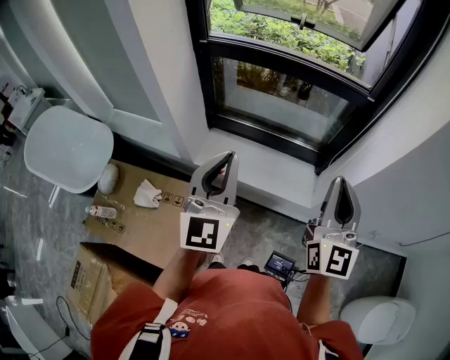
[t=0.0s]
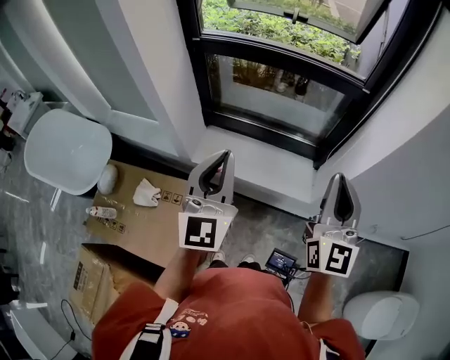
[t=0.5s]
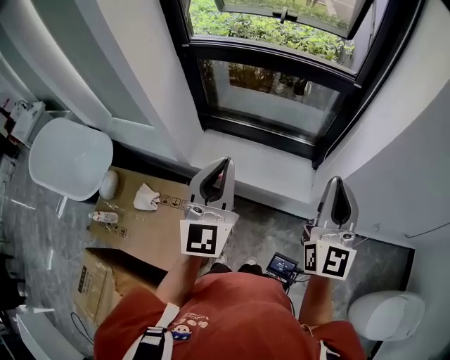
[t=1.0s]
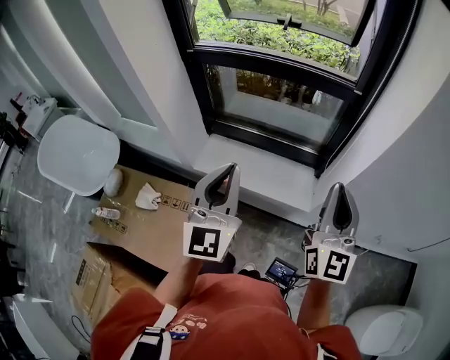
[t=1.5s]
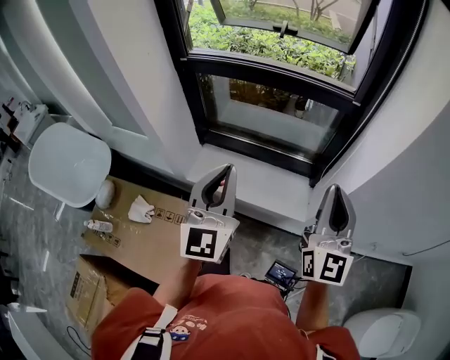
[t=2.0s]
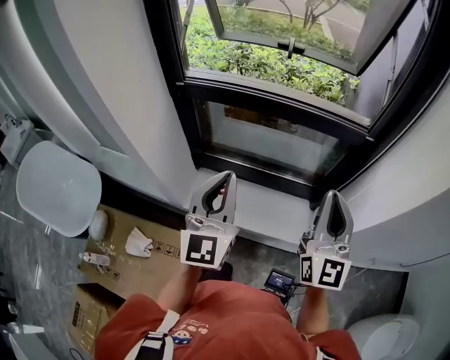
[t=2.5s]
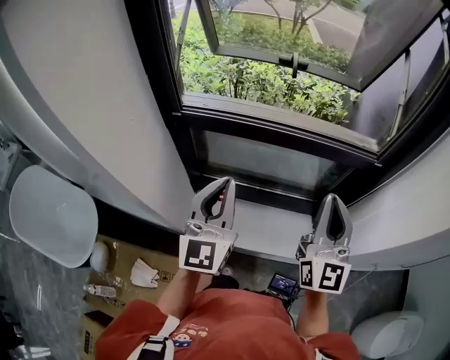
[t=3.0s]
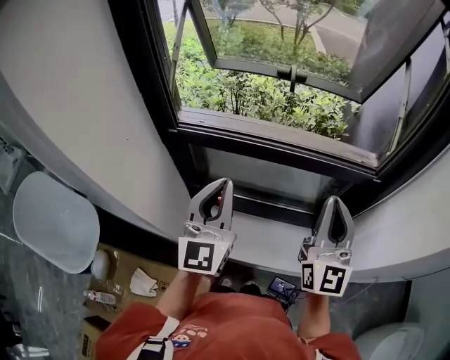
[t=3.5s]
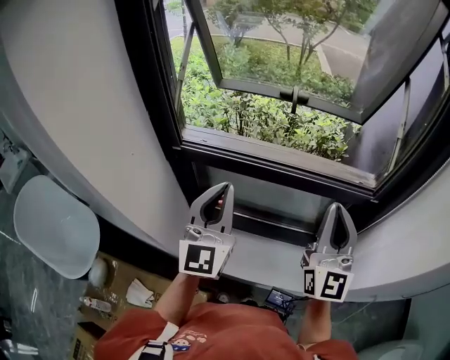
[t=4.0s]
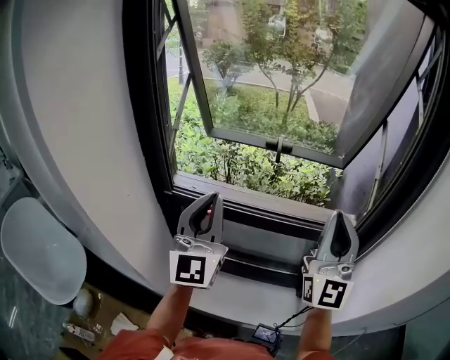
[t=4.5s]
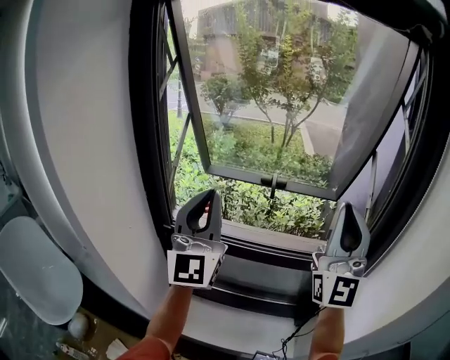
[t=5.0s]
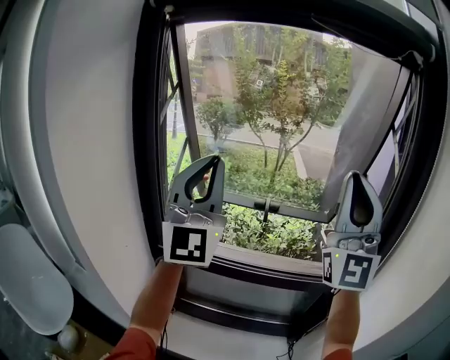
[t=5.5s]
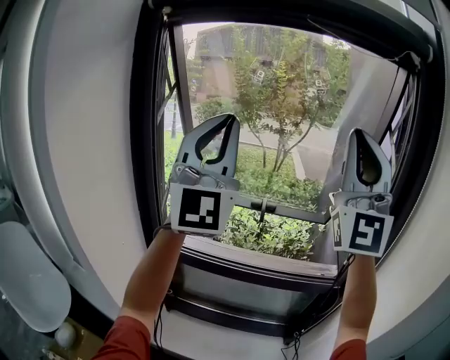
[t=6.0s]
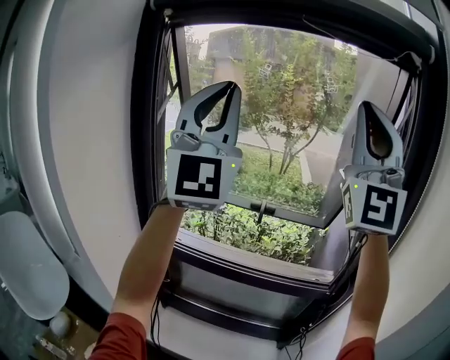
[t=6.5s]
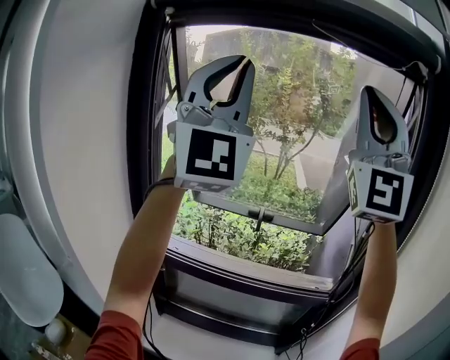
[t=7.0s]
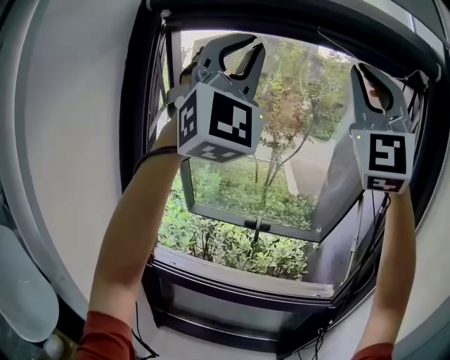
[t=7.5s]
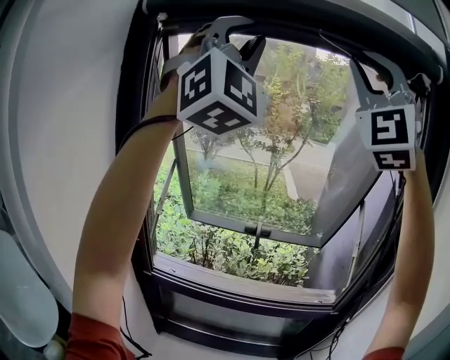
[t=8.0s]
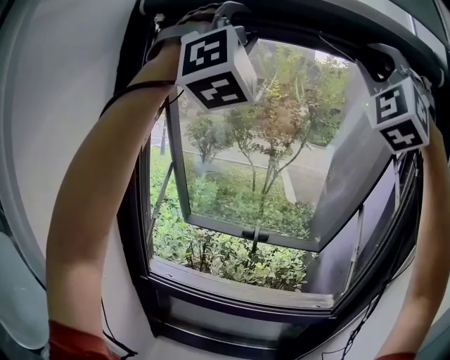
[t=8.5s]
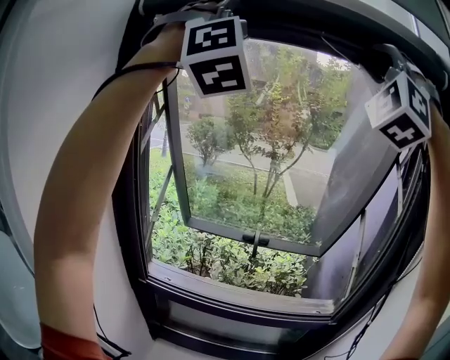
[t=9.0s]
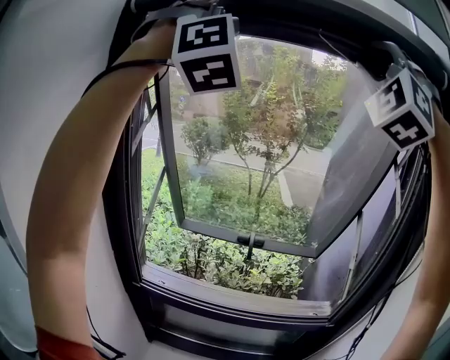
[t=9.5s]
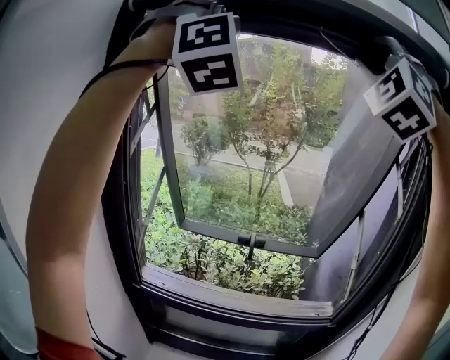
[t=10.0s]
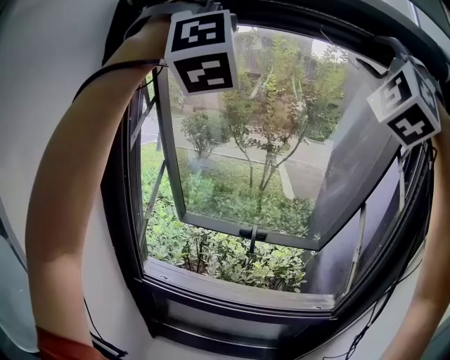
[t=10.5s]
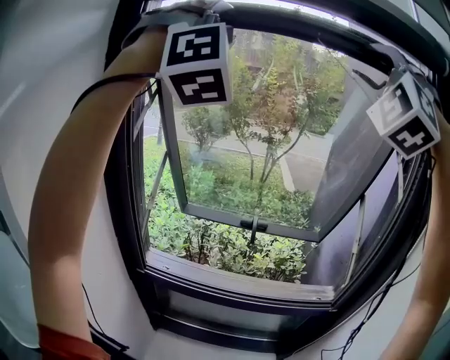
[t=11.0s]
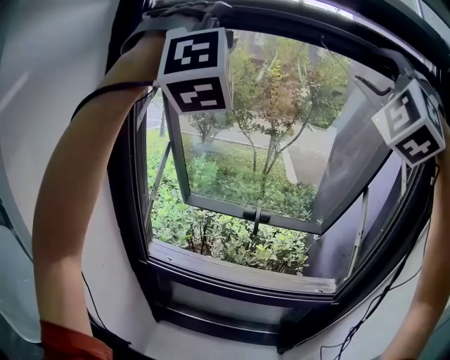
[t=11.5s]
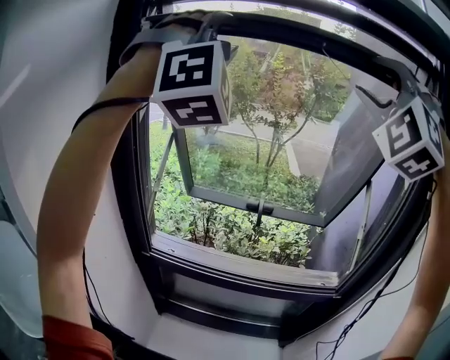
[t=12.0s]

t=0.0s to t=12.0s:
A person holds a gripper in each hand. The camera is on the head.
t=0.0s to t=2.0s: The two grippers go about 5 cm to the right.
t=2.0s to t=4.0s: The two grippers go roughly 30 cm forward and to the left.
t=4.0s to t=6.0s: The grippers both shift upward by roughly 40 cm. The left gripper points its fingers some 30 degrees further upward. The right gripper turns by about 40 degrees.
t=6.0s to t=8.0s: The right gripper moves upward and forward, some 20 cm, and rotates roughly 30 degrees. The left gripper shifts about 20 cm upward, and turns by some 40 degrees.
t=8.0s to t=10.0s: The right gripper changes place by roughly 5 cm, and turns by approximately 30 degrees. The left gripper is displaced forward by some 5 cm, and turns by about 30 degrees.
t=10.0s to t=12.0s: Both grippers travel together downward, roughly 10 cm.

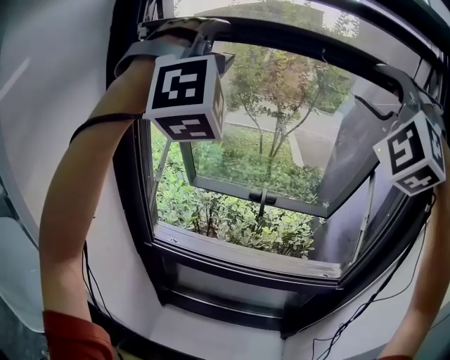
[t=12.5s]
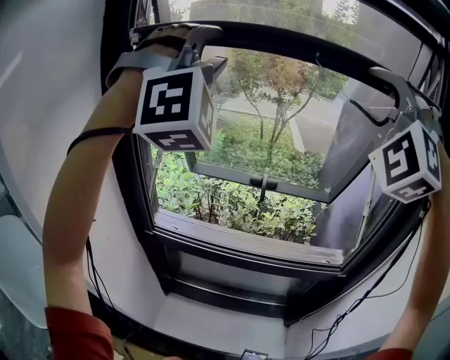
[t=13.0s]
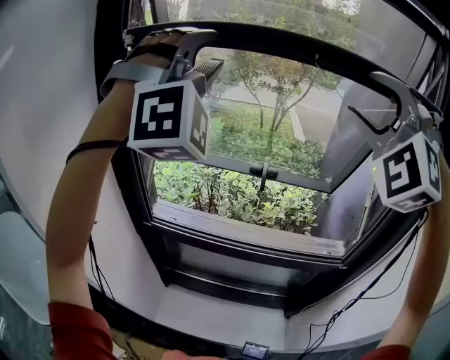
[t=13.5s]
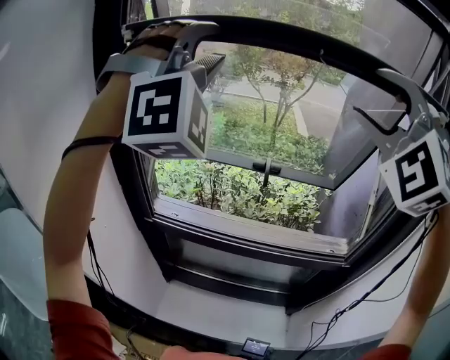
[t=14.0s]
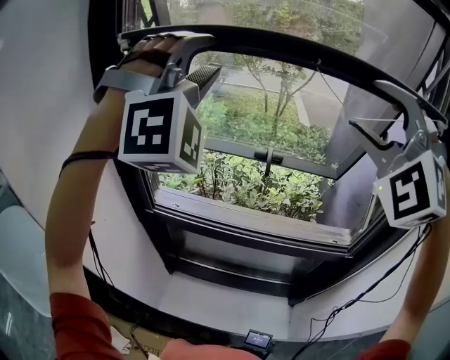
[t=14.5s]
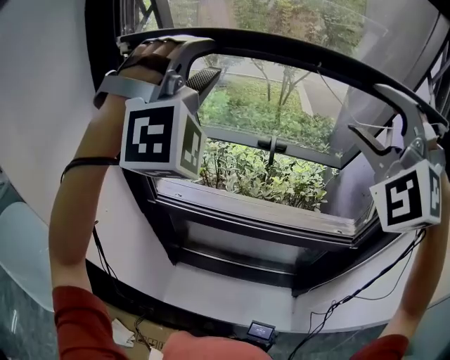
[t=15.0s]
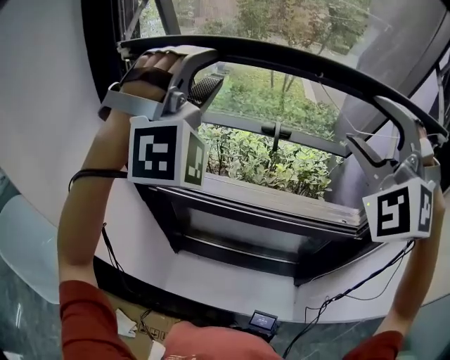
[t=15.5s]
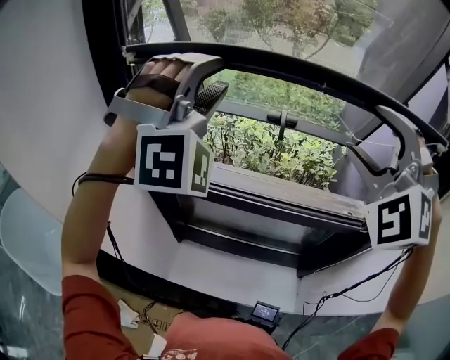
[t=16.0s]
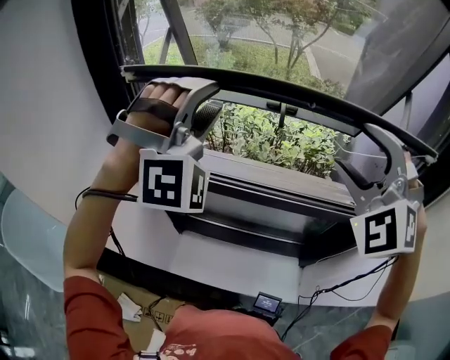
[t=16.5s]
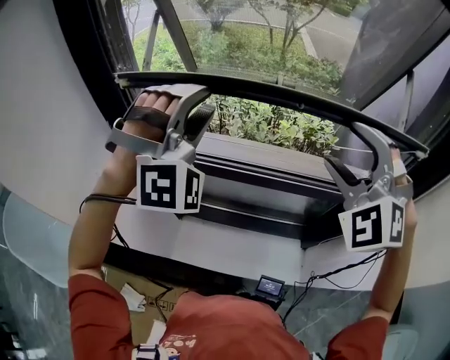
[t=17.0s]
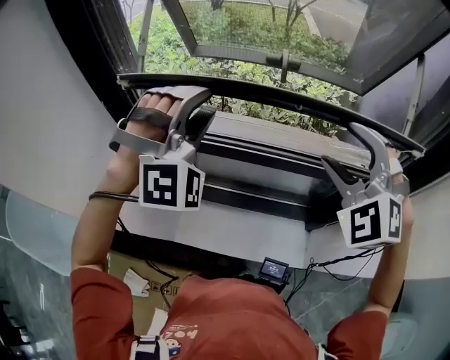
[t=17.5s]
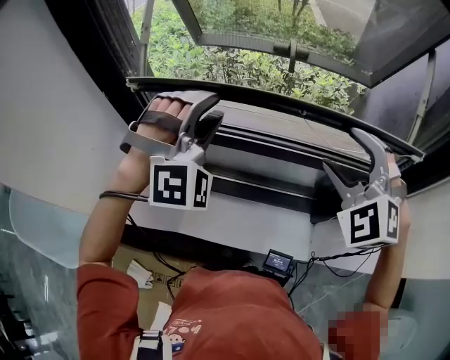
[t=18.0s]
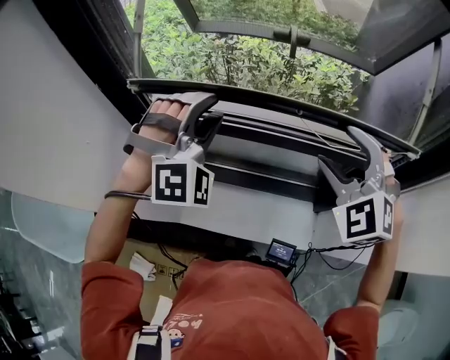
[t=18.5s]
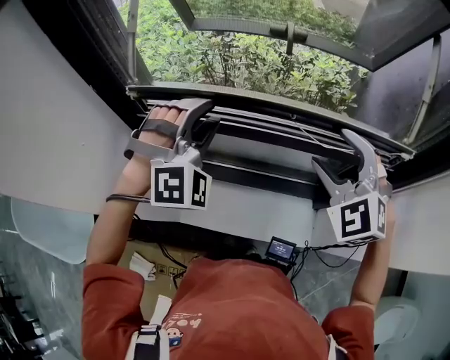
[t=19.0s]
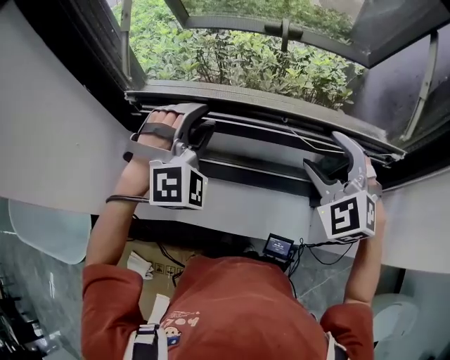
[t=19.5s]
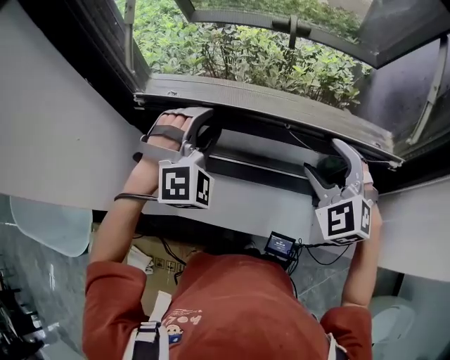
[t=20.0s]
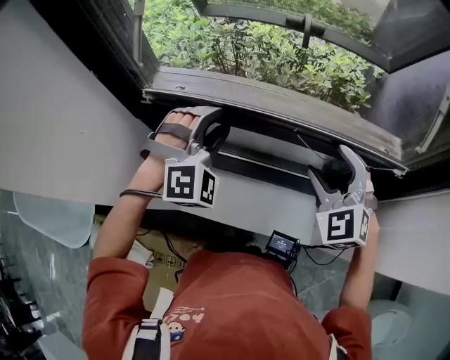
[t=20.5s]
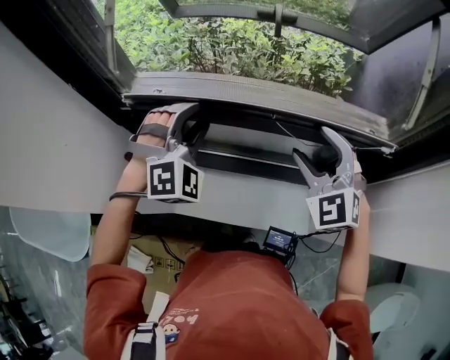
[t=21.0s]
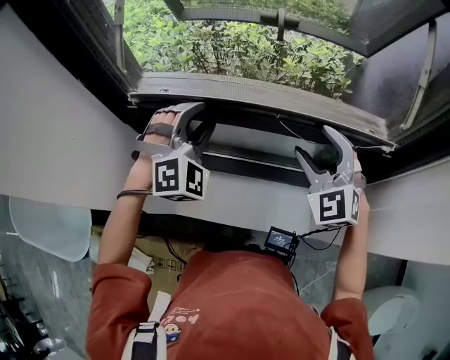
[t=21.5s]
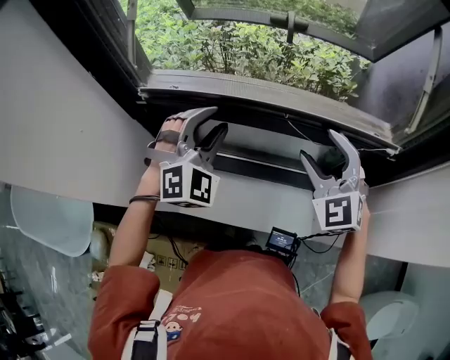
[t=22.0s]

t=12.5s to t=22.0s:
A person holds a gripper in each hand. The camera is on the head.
t=12.5s to t=14.5s: The two grippers go about 10 cm downward.
t=14.5s to t=16.5s: The grippers both shift downward by about 15 cm.
t=16.5s to t=18.0s: The two grippers go about 15 cm downward.
t=18.0s to t=20.0s: The grippers both shift downward by approximately 10 cm.
t=20.0s to t=22.0s: The grippers move only a little.

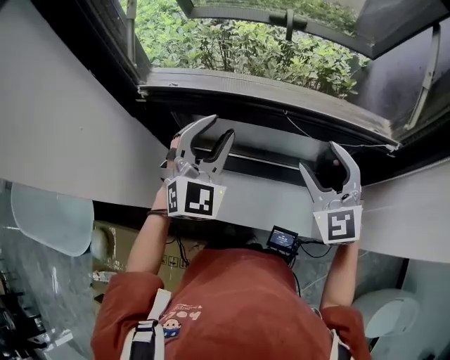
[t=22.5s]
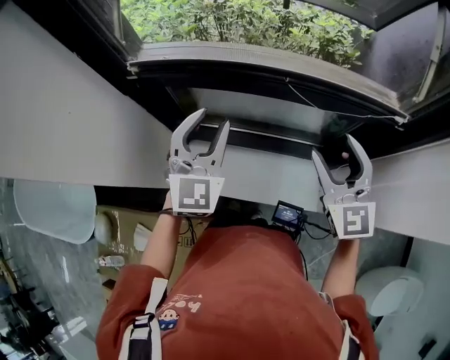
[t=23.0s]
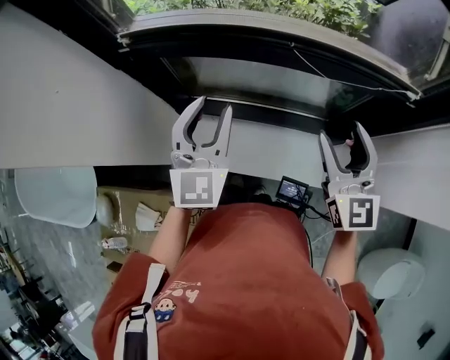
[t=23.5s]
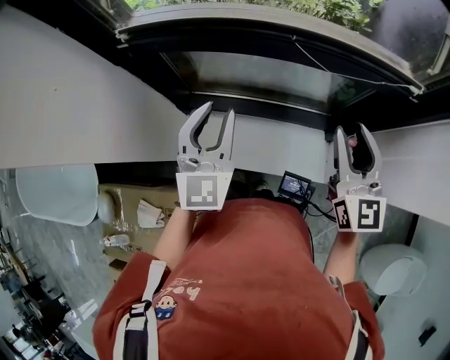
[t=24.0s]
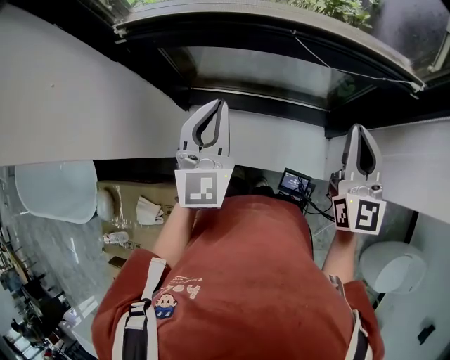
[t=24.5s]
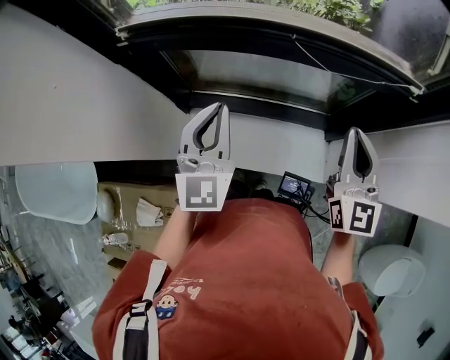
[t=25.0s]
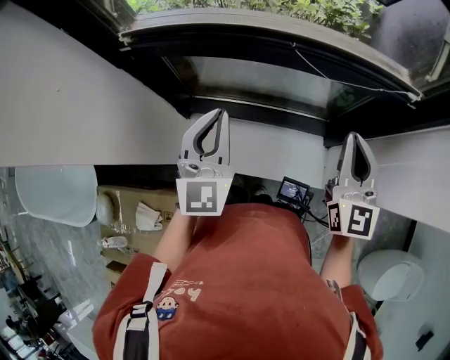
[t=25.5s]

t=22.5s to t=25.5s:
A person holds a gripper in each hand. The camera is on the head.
t=22.5s to t=24.0s: The right gripper is displaced backward and to the right by roughly 10 cm, changes its angle by roughly 30 degrees, and closes, while the left gripper goes approximately 10 cm backward and downward, and changes its angle by approximately 30 degrees.
t=24.0s to t=25.5s: The right gripper closes. The left gripper closes up.

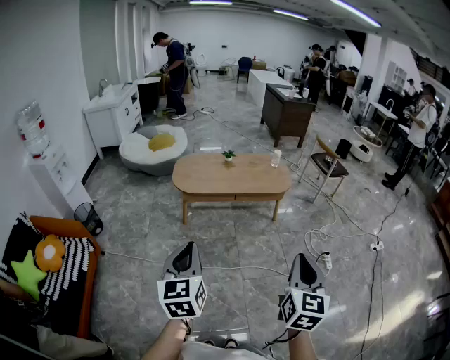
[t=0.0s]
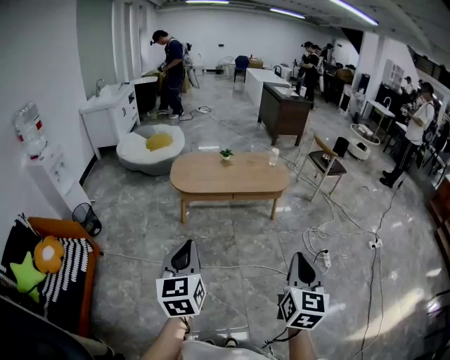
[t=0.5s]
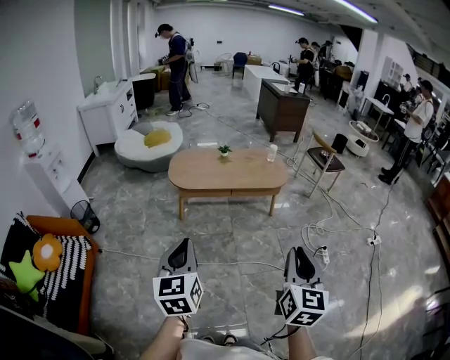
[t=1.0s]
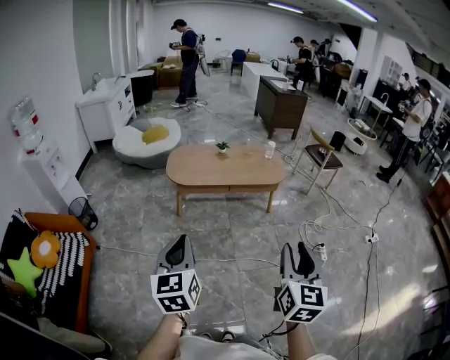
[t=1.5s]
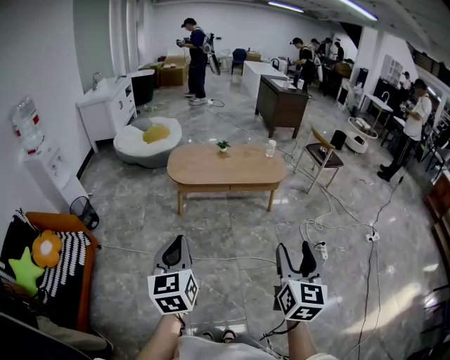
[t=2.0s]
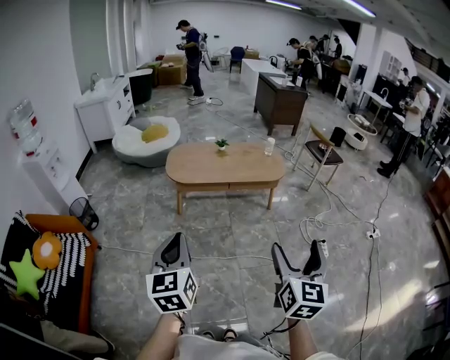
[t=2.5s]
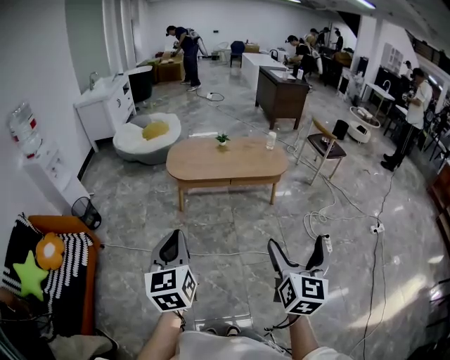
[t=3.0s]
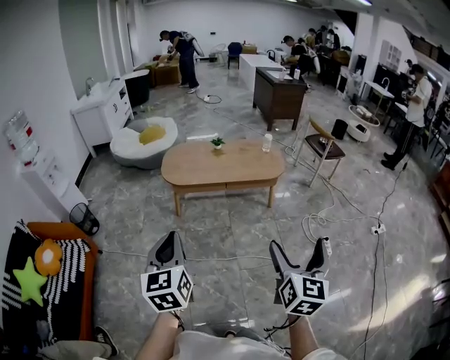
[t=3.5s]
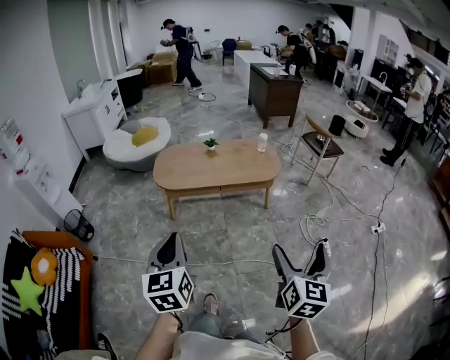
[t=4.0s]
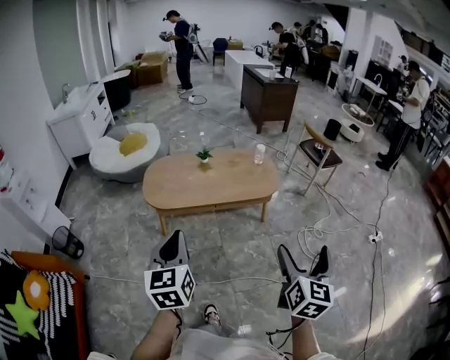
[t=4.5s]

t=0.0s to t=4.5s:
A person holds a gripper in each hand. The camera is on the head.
t=0.0s to t=2.0s: The right gripper opens.
t=2.0s to t=4.5s: Both grippers move forward, approximately 25 cm. The right gripper opens.
